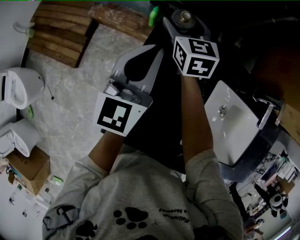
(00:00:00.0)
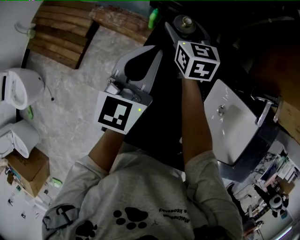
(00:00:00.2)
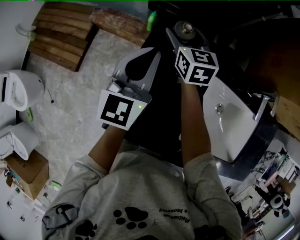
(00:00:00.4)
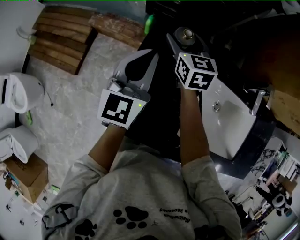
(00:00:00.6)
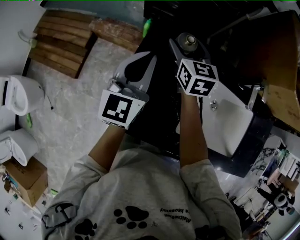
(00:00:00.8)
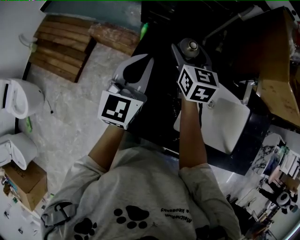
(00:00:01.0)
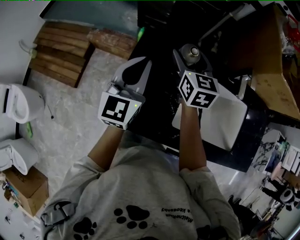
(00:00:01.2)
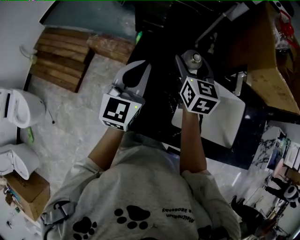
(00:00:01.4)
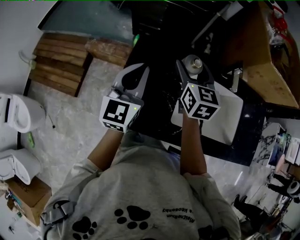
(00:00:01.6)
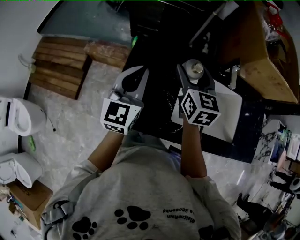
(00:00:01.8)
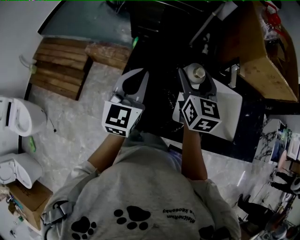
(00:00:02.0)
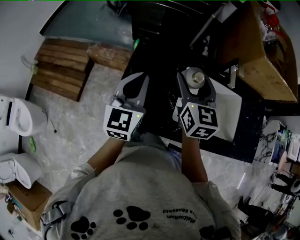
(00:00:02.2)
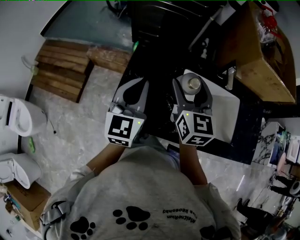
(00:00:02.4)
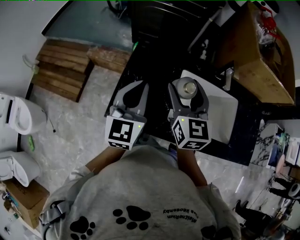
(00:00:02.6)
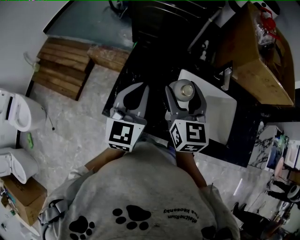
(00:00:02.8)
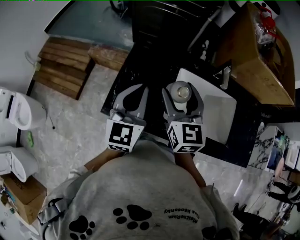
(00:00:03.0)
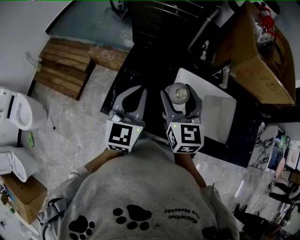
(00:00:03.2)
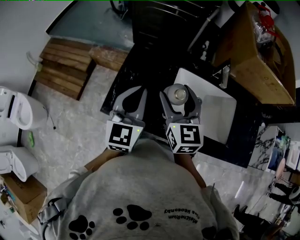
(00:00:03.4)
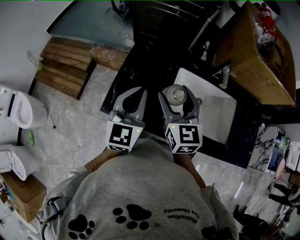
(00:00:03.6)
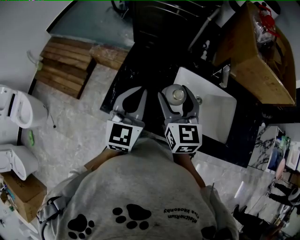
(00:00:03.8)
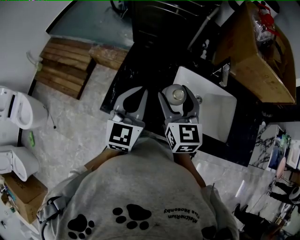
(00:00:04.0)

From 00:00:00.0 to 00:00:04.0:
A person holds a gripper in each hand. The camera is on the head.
From 00:00:00.0 to 00:00:01.4: The left gripper travels backward and upward by roughly 10 cm; the right gripper is displaced backward, upward and to the right by approximately 25 cm.
From 00:00:01.4 to 00:00:02.6: The left gripper travels backward by about 10 cm. The right gripper shifts about 15 cm backward and upward.
From 00:00:02.6 to 00:00:04.0: The right gripper ends up roughly 5 cm from where it was, while the left gripper changes place by approximately 5 cm.

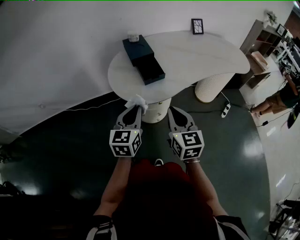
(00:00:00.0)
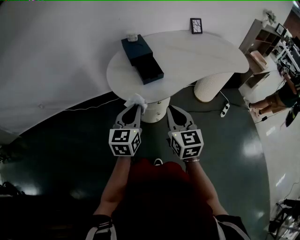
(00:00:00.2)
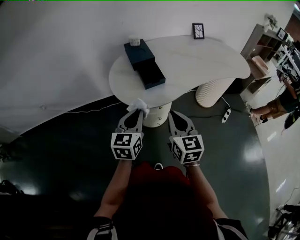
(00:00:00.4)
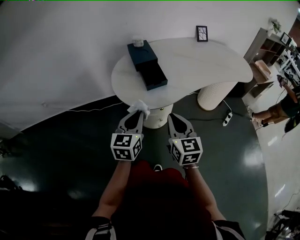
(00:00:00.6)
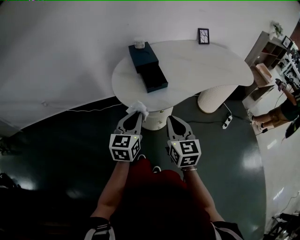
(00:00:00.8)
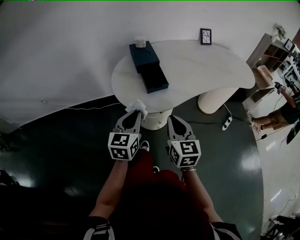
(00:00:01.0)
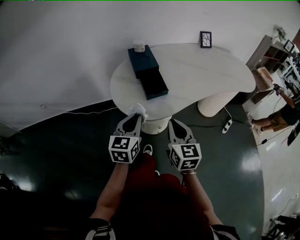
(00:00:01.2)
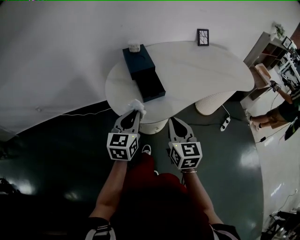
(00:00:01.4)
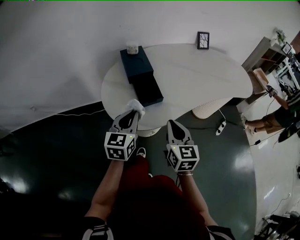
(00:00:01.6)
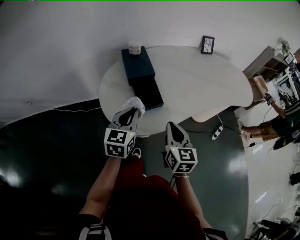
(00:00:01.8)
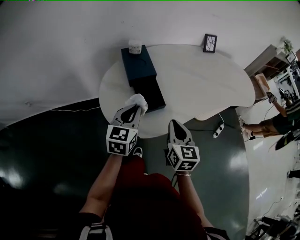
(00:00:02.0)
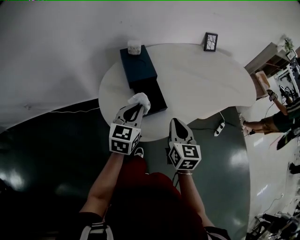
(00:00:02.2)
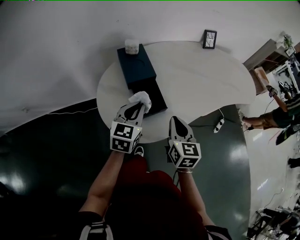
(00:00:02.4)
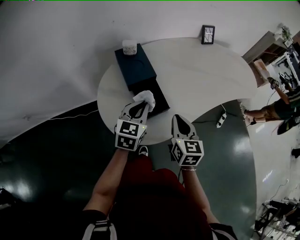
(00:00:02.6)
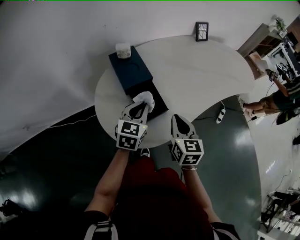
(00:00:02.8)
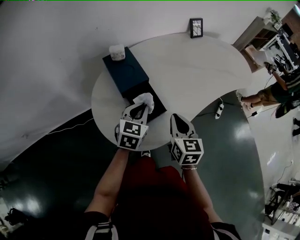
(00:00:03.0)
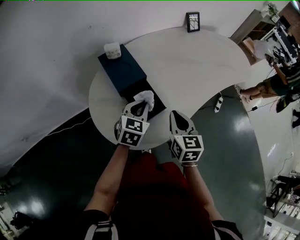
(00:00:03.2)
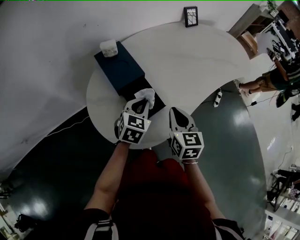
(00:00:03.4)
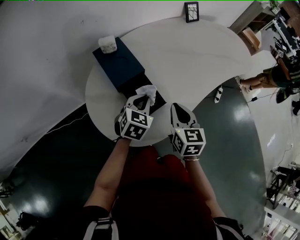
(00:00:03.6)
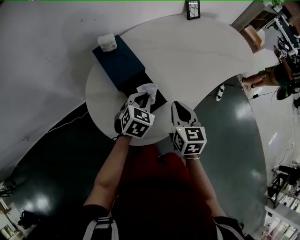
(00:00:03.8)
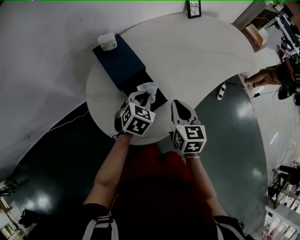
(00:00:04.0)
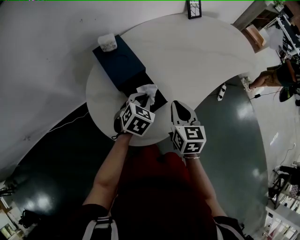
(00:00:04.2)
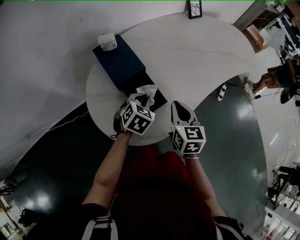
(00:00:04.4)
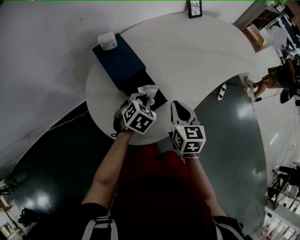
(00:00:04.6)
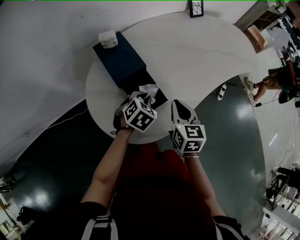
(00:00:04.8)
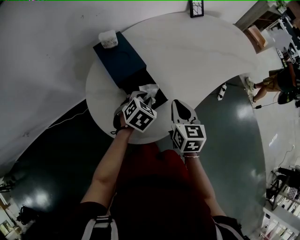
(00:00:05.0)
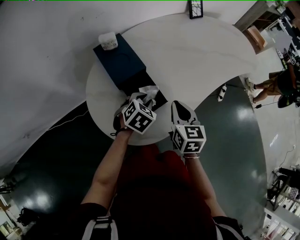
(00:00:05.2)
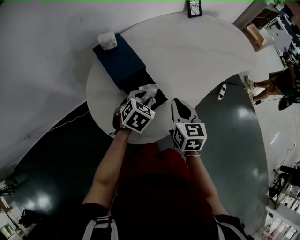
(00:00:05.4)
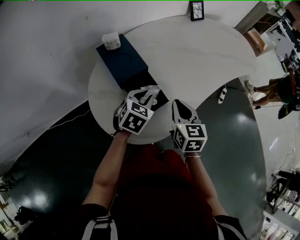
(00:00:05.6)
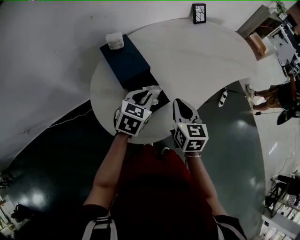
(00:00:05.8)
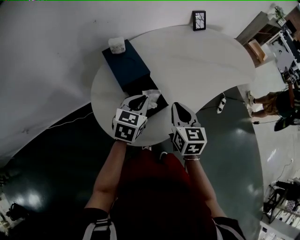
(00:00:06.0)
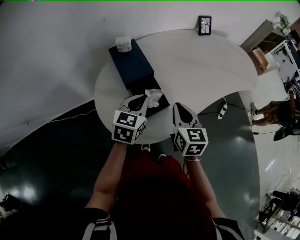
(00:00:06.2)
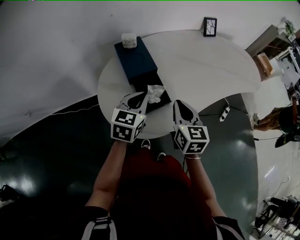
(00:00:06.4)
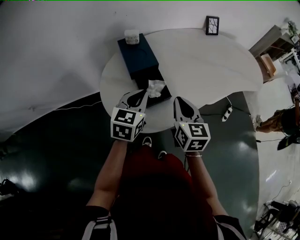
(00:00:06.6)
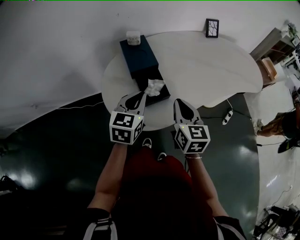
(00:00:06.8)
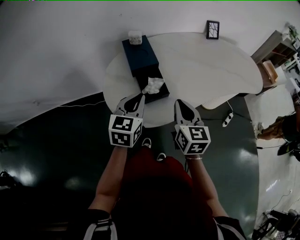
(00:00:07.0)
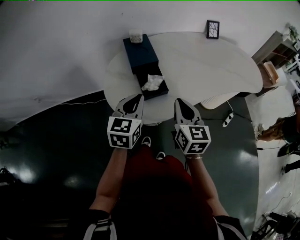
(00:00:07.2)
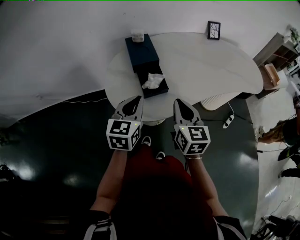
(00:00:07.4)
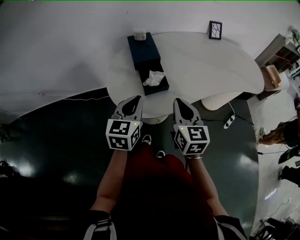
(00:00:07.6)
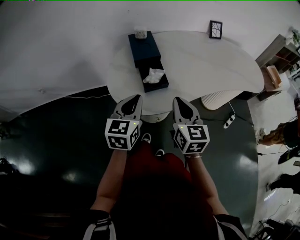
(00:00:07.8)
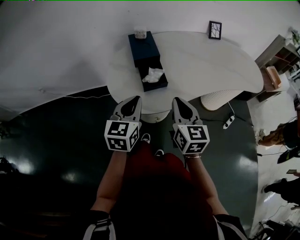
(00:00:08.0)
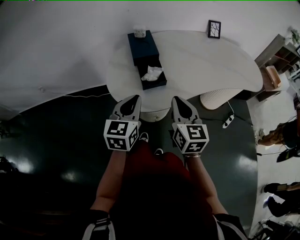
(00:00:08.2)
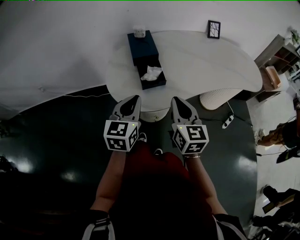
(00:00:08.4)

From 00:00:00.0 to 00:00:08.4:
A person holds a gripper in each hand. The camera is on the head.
From 00:00:00.0 to 00:00:01.4: Both grippers travel together forward, roughly 10 cm.
From 00:00:01.4 to 00:00:02.8: The two grippers go some 15 cm forward.
From 00:00:02.8 to 00:00:04.2: The left gripper moves downward, approximately 5 cm, and turns by approximately 30 degrees.
From 00:00:04.2 to 00:00:05.6: The grippers make only small movements.
From 00:00:05.6 to 00:00:07.0: The right gripper is displaced upward and backward by about 10 cm. The left gripper goes approximately 15 cm backward and upward, and rotates some 40 degrees.
From 00:00:07.0 to 00:00:08.4: The grippers both shift backward by some 10 cm.

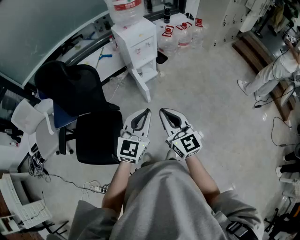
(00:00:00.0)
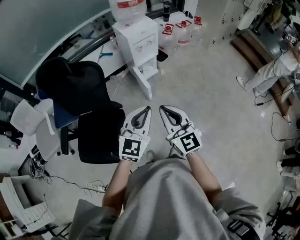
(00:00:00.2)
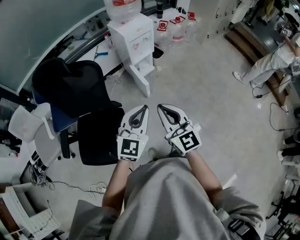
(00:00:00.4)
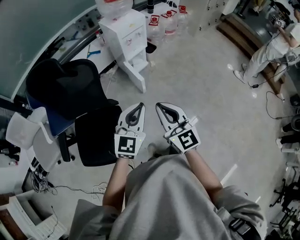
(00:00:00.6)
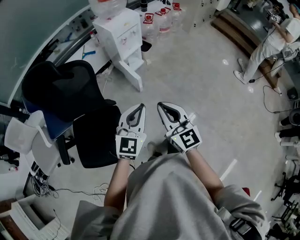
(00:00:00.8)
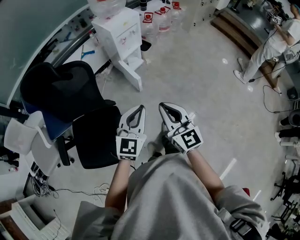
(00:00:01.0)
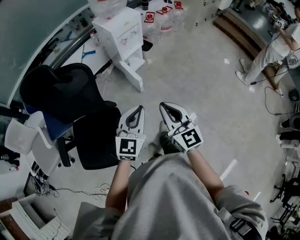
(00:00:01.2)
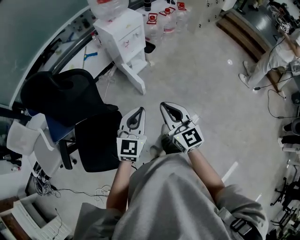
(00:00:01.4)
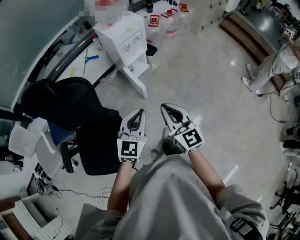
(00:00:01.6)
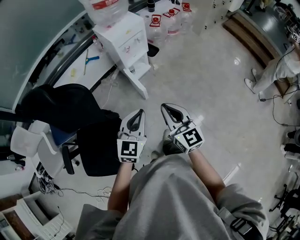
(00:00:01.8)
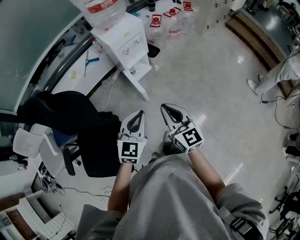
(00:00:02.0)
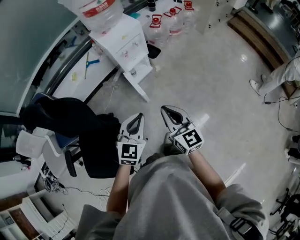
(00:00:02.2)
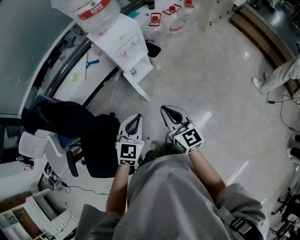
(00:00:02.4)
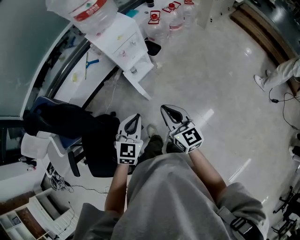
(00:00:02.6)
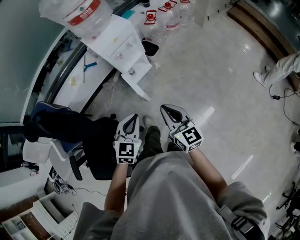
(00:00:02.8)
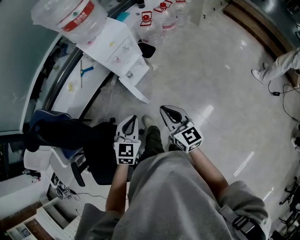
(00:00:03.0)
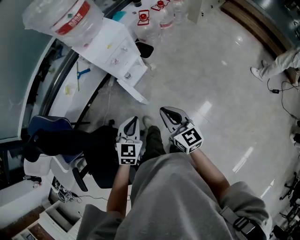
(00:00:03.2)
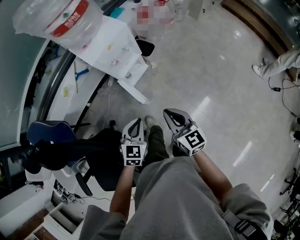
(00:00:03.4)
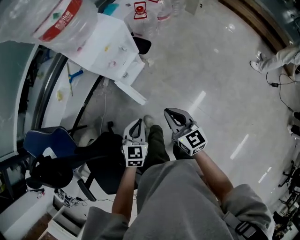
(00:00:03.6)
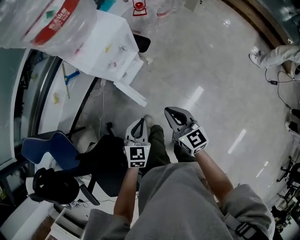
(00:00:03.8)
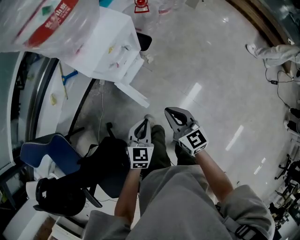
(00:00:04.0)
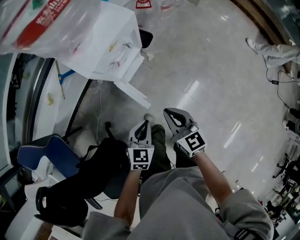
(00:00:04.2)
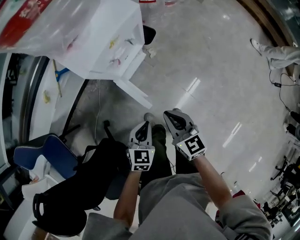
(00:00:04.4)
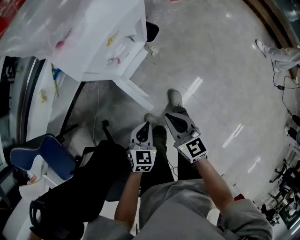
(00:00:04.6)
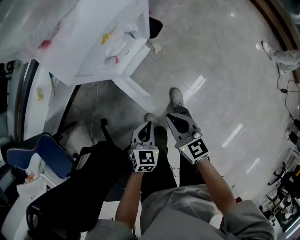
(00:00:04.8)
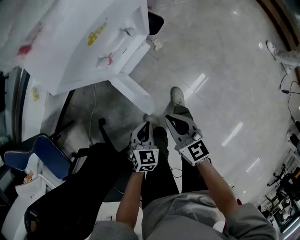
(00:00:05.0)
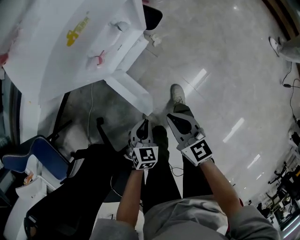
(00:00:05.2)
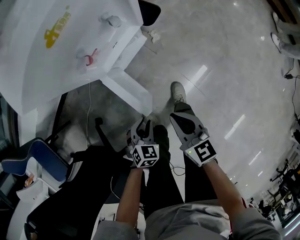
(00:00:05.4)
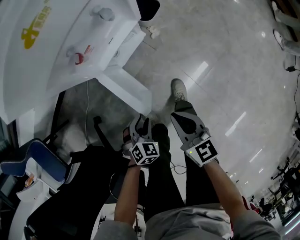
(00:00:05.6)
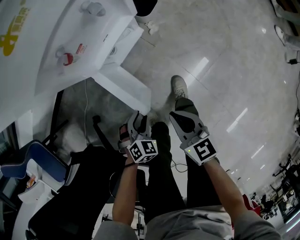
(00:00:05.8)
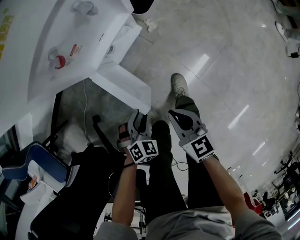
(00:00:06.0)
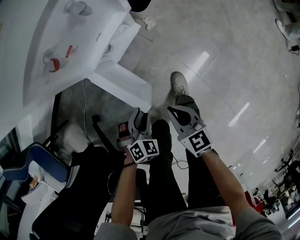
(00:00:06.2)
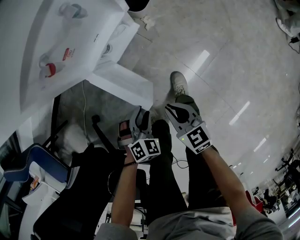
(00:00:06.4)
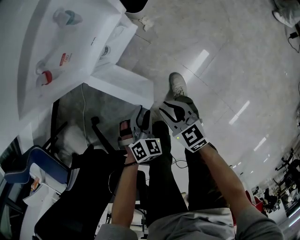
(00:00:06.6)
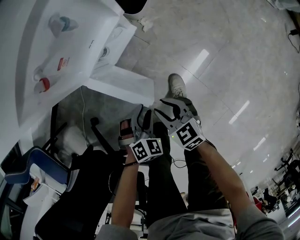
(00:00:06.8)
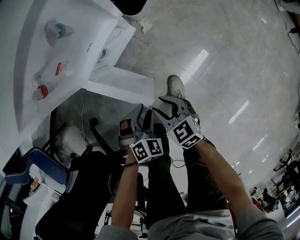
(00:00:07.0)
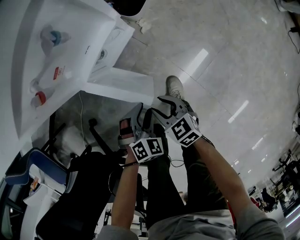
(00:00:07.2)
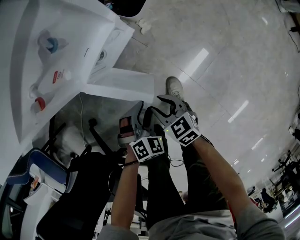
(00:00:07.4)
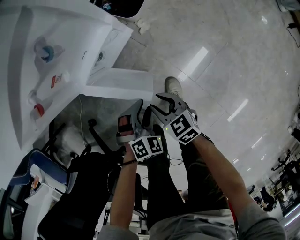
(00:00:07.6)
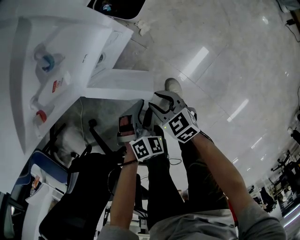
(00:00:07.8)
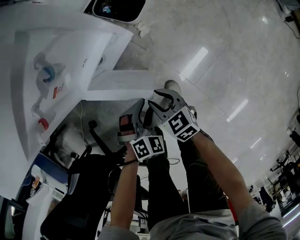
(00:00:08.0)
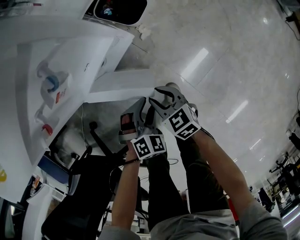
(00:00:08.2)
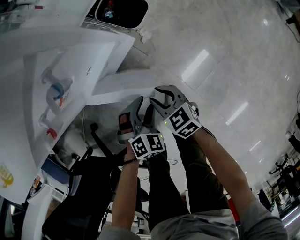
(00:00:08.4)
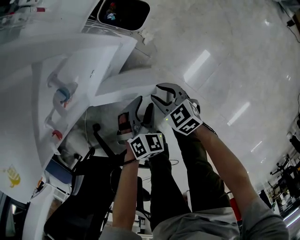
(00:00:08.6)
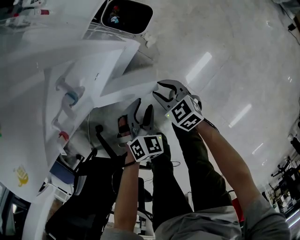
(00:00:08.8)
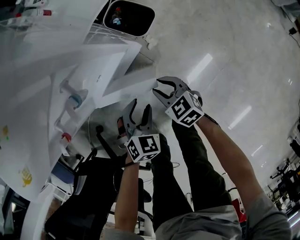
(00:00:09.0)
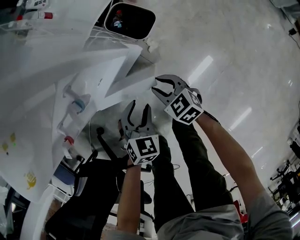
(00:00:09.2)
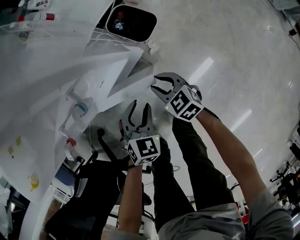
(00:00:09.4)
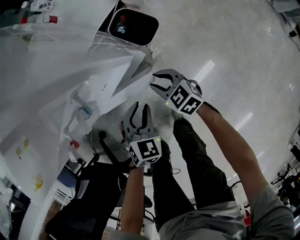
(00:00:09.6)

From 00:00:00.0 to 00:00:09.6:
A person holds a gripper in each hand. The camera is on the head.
From 00:00:00.0 to 00:00:01.6: The right gripper goes about 5 cm forward. Meanwhile the left gripper heads to the left, forward and downward, covering approximately 10 cm.
From 00:00:01.6 to 00:00:03.2: The left gripper goes approximately 20 cm forward and downward; the right gripper shifts about 25 cm forward, downward and to the right.
From 00:00:03.2 to 00:00:04.8: The right gripper is displaced downward, forward and to the left by some 35 cm. The left gripper goes approximately 35 cm downward and forward.
From 00:00:04.8 to 00:00:06.4: The grippers both shift downward by some 20 cm. The left gripper turns by roughly 30 degrees, and opens up.
From 00:00:06.4 to 00:00:08.0: The right gripper travels forward by roughly 10 cm, and opens up, while the left gripper heads to the right and forward, covering about 15 cm.
From 00:00:08.0 to 00:00:09.6: The right gripper is displaced forward by roughly 15 cm. Meanwhile the left gripper travels forward and upward by about 15 cm, and rotates approximately 30 degrees.

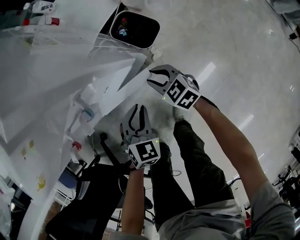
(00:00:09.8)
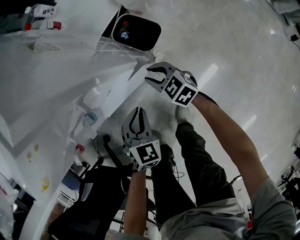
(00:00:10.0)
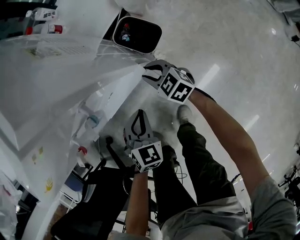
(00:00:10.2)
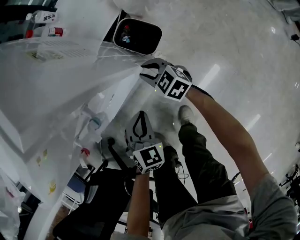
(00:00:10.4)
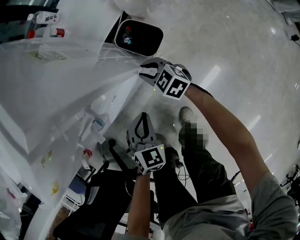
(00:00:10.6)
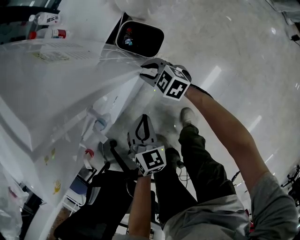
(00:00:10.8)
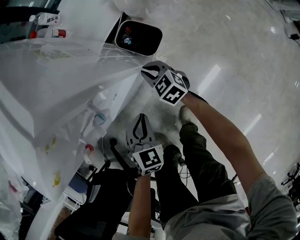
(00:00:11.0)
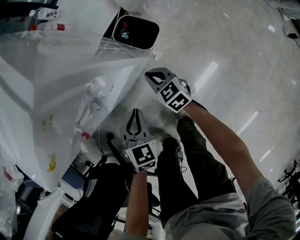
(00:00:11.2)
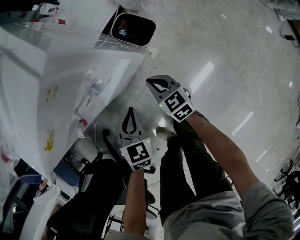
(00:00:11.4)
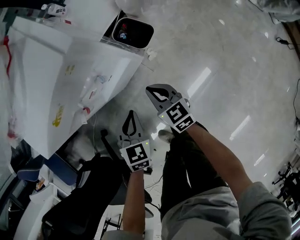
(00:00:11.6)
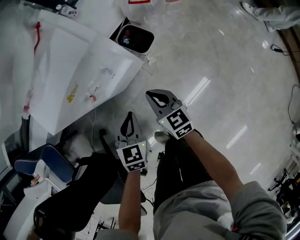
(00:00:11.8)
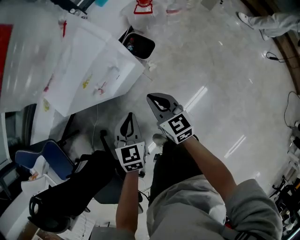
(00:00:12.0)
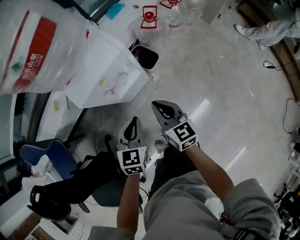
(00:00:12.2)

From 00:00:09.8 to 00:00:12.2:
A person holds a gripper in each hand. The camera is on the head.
From 00:00:09.8 to 00:00:11.0: The right gripper shifts roughly 5 cm forward.
From 00:00:11.0 to 00:00:12.2: The left gripper travels upward by roughly 30 cm, and rotates roughly 20 degrees. Meanwhile the right gripper travels upward and backward by some 50 cm, and swivels about 30 degrees.
